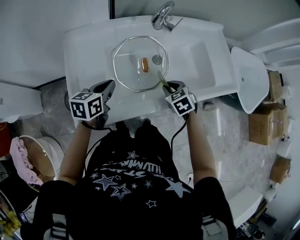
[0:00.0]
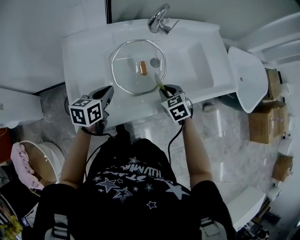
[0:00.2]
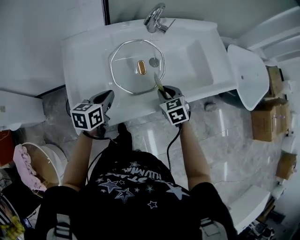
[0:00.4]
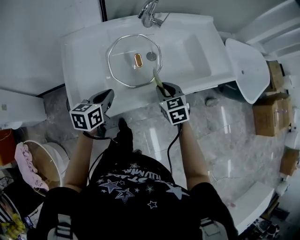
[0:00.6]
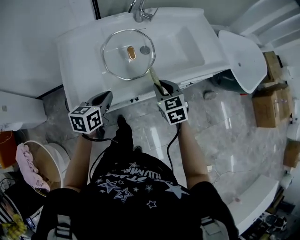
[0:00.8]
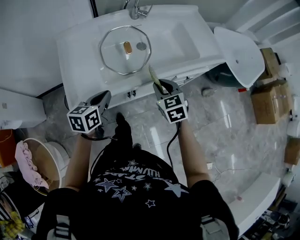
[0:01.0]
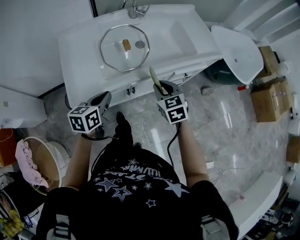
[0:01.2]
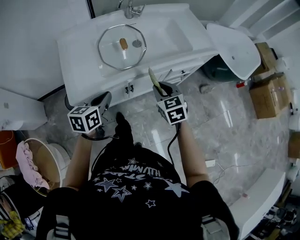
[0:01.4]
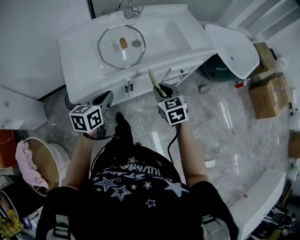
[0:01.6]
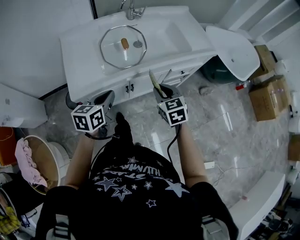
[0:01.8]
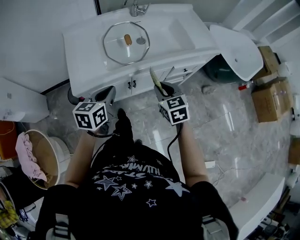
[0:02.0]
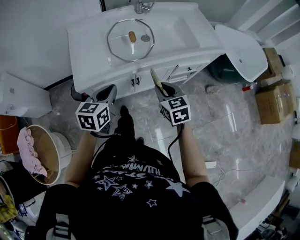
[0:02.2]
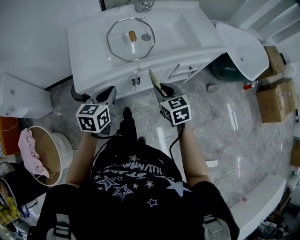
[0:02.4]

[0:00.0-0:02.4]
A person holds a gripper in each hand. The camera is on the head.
0:00.0 to 0:01.2: The right gripper is displaced backward and upward by about 20 cm, and changes its angle by approximately 30 degrees, while the left gripper heads backward and to the right, covering approximately 20 cm.
0:01.2 to 0:02.4: Both grippers travel together backward, approximately 5 cm.

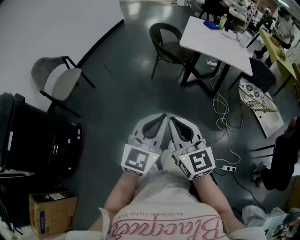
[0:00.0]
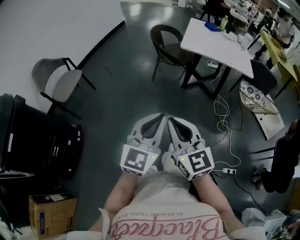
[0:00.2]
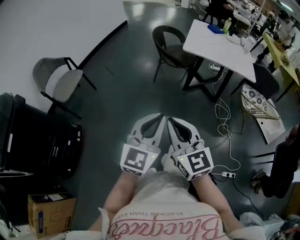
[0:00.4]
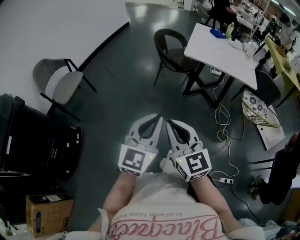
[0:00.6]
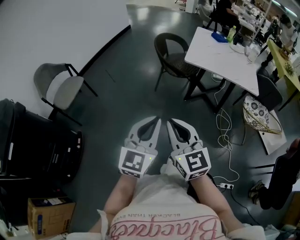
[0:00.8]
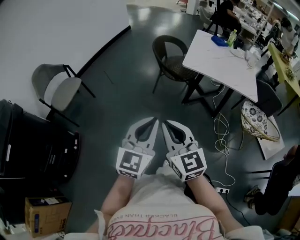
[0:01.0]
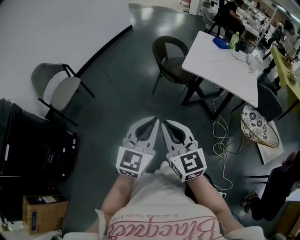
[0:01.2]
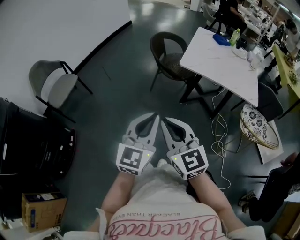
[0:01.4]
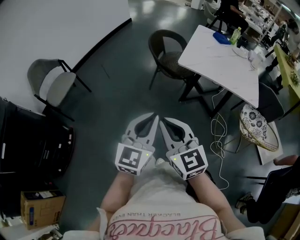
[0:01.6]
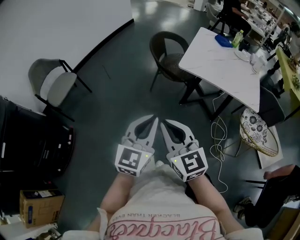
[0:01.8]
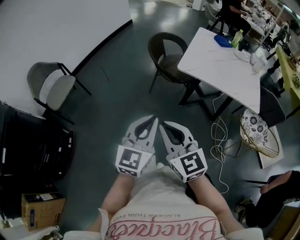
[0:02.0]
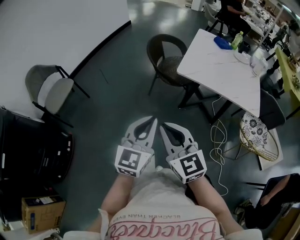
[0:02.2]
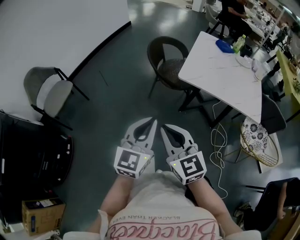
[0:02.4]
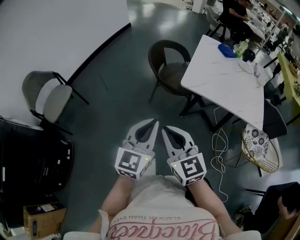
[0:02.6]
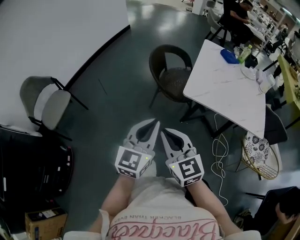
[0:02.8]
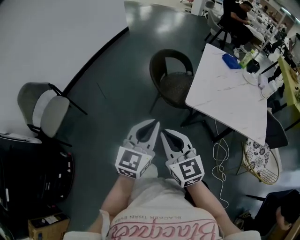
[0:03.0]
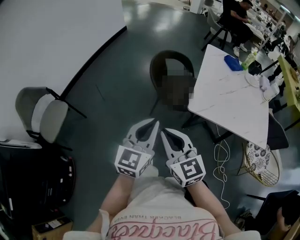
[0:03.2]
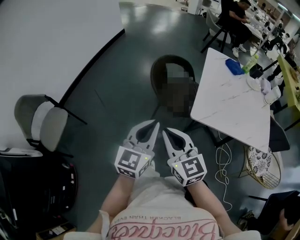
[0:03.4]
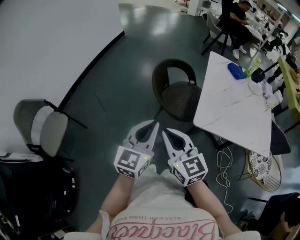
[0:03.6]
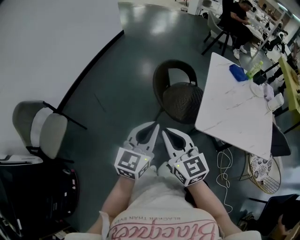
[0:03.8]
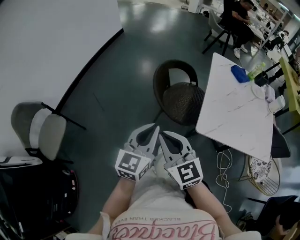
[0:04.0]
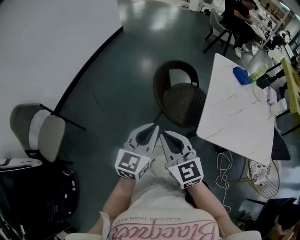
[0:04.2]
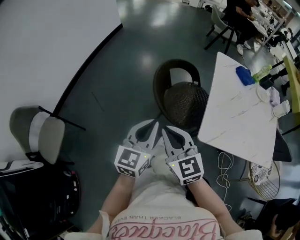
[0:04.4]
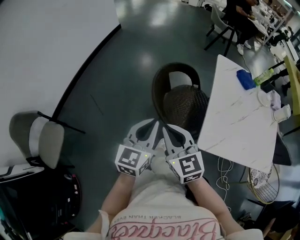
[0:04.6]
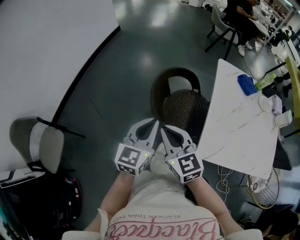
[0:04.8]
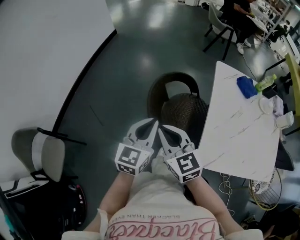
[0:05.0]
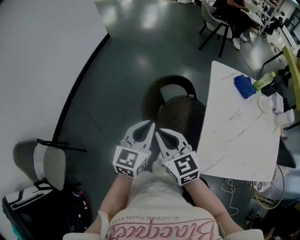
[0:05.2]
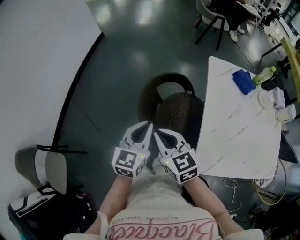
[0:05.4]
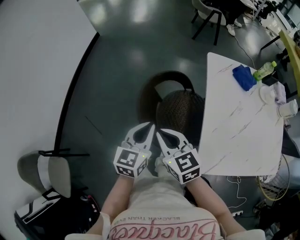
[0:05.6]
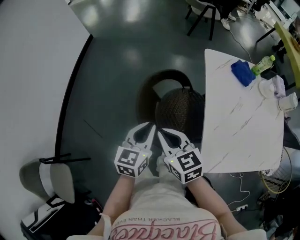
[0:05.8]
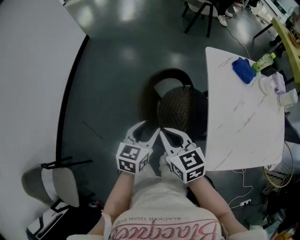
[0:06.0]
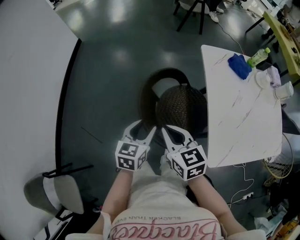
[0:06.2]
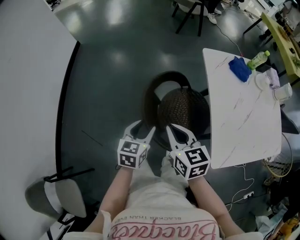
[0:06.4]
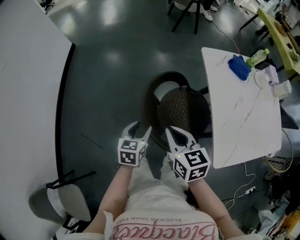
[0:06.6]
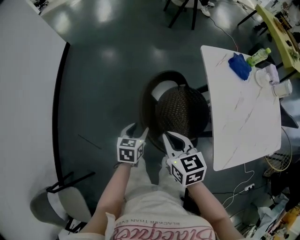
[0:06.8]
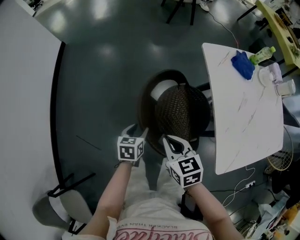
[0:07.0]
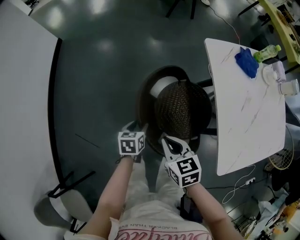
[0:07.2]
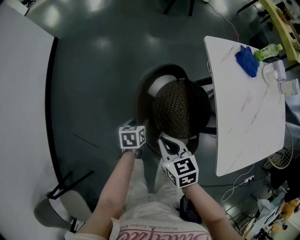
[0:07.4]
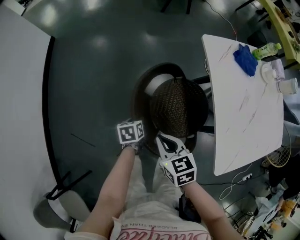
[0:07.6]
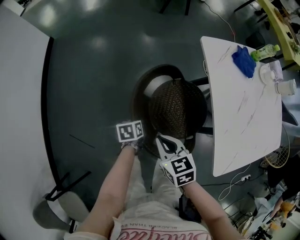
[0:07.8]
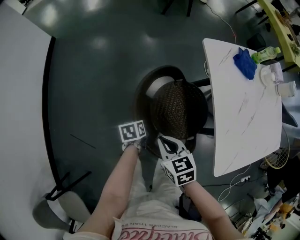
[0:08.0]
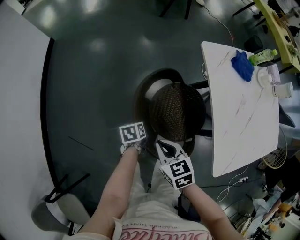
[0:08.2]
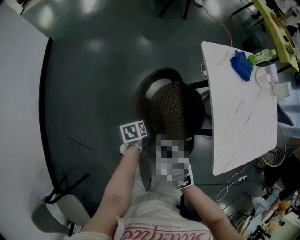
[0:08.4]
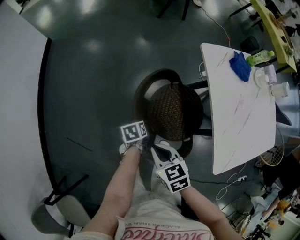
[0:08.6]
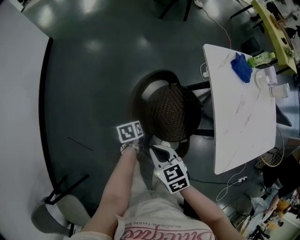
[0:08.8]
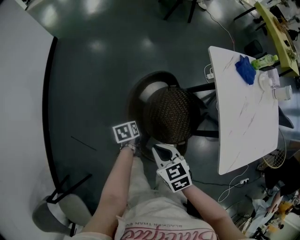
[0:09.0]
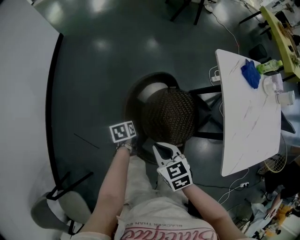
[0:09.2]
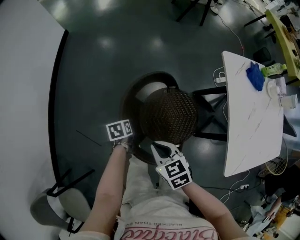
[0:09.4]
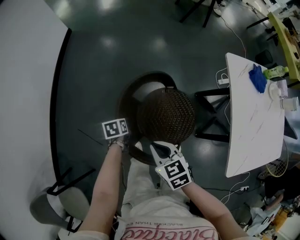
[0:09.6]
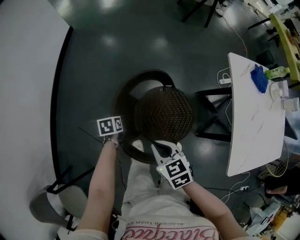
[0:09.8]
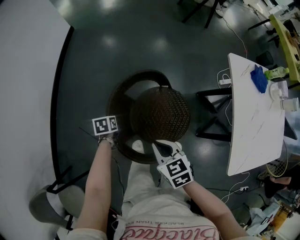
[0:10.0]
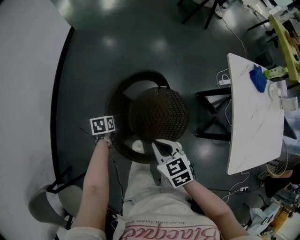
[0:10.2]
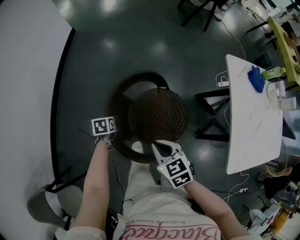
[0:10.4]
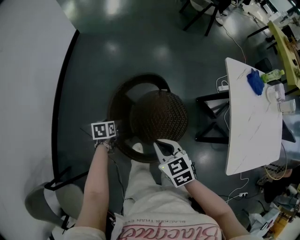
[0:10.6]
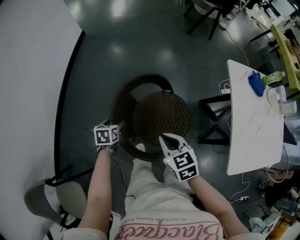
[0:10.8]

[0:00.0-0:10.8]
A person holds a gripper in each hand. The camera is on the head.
0:00.0 to 0:01.6: The two grippers go roughly 25 cm forward and to the right.
0:01.6 to 0:03.0: Both grippers move forward, approximately 30 cm.
0:03.0 to 0:04.6: The two grippers go about 30 cm forward.
0:04.6 to 0:06.2: The left gripper travels forward and downward by about 25 cm, turns by approximately 30 degrees, and opens, while the right gripper heads forward, covering approximately 20 cm, and swivels roughly 30 degrees.
0:06.2 to 0:07.8: The left gripper travels downward and forward by approximately 25 cm, and swivels approximately 40 degrees. The right gripper moves downward and forward, about 15 cm.
0:07.8 to 0:09.2: Both grippers travel together to the left, some 10 cm.
0:09.2 to 0:10.8: The right gripper heads to the left, covering approximately 5 cm. Meanwhile the left gripper heads to the left and upward, covering roughly 15 cm, and opens up.

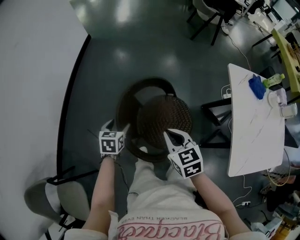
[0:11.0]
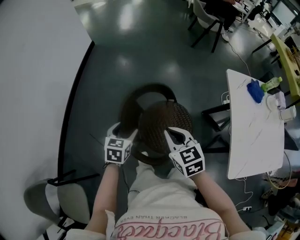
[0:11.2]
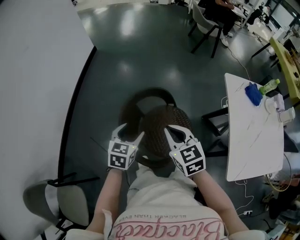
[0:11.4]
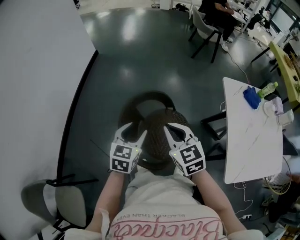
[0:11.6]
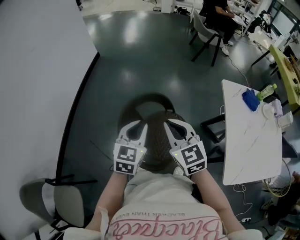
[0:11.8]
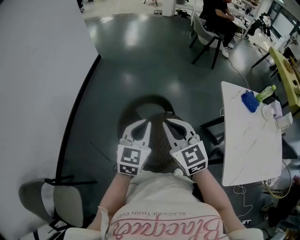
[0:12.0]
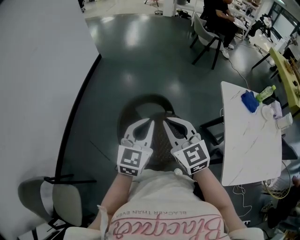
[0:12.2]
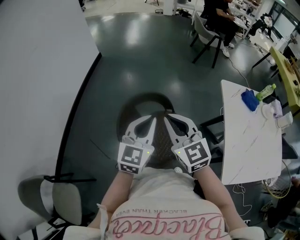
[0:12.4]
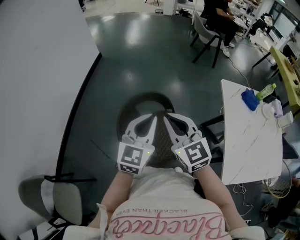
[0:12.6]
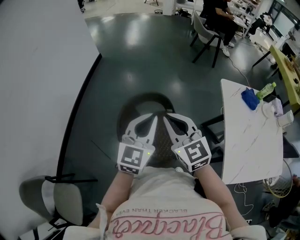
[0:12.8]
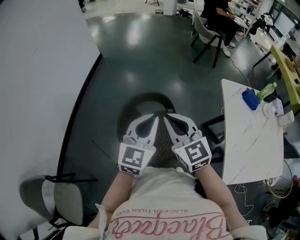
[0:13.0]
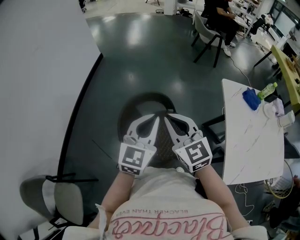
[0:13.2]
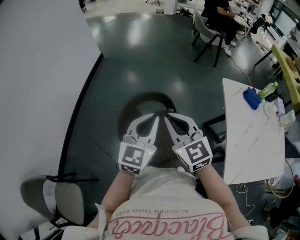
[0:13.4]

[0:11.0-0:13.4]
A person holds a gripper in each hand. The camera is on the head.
0:11.0 to 0:12.2: The left gripper travels upward and to the right by approximately 30 cm, tilts its fingers about 40 degrees upward, and closes up; the right gripper travels upward by about 15 cm, and swivels about 30 degrees.
0:12.2 to 0:13.4: The grippers make only small movements.

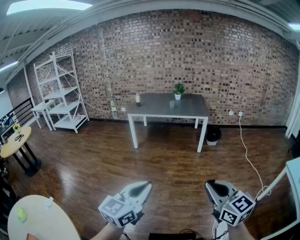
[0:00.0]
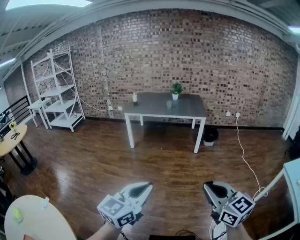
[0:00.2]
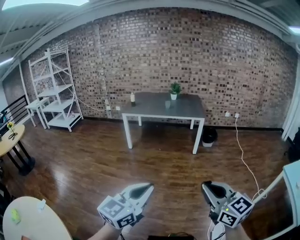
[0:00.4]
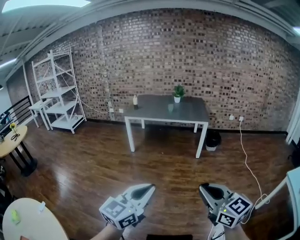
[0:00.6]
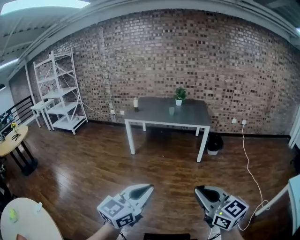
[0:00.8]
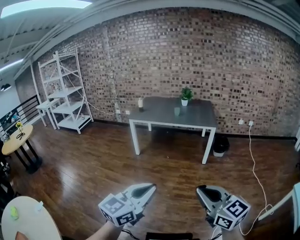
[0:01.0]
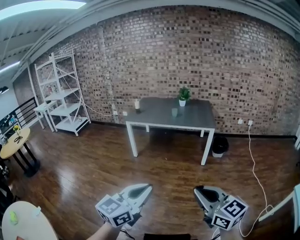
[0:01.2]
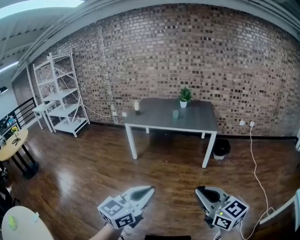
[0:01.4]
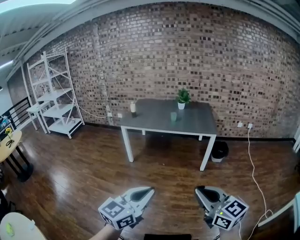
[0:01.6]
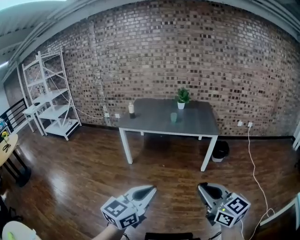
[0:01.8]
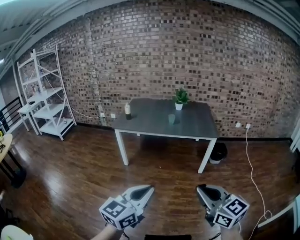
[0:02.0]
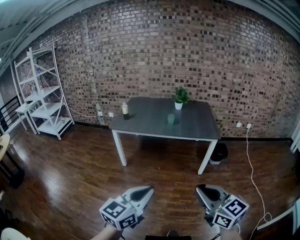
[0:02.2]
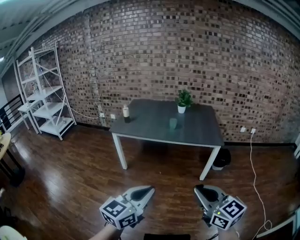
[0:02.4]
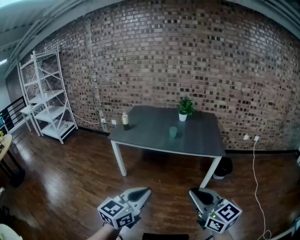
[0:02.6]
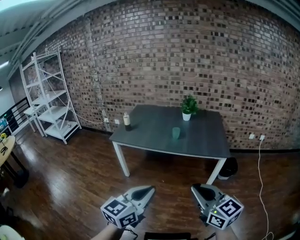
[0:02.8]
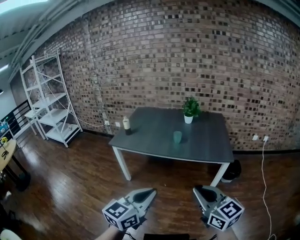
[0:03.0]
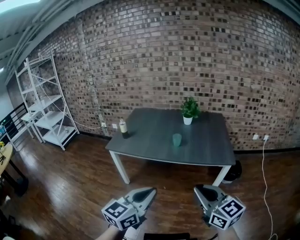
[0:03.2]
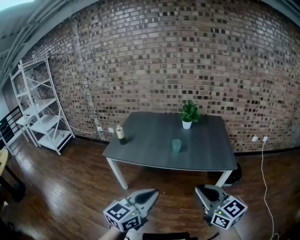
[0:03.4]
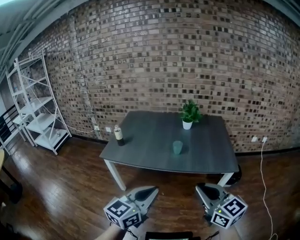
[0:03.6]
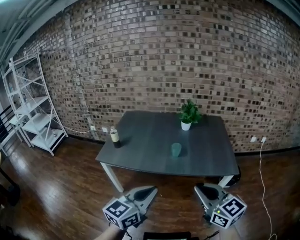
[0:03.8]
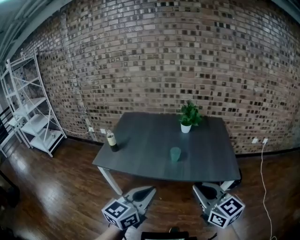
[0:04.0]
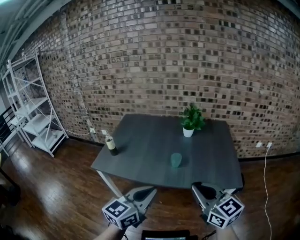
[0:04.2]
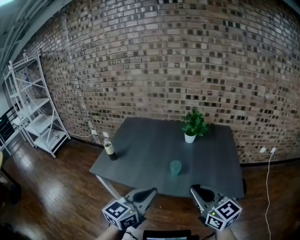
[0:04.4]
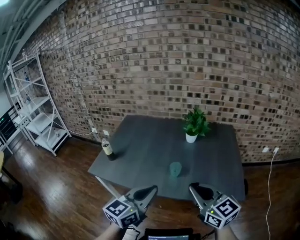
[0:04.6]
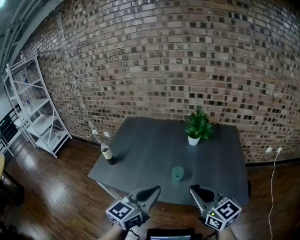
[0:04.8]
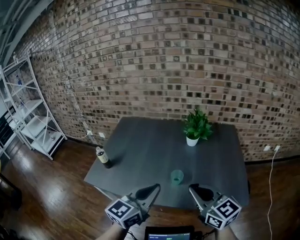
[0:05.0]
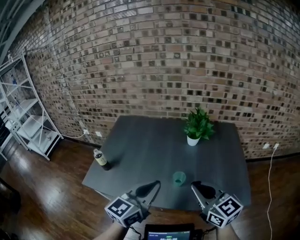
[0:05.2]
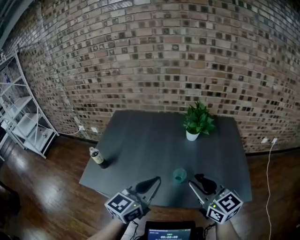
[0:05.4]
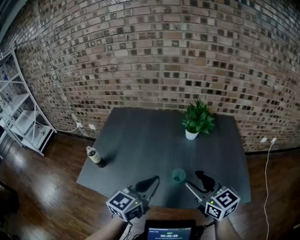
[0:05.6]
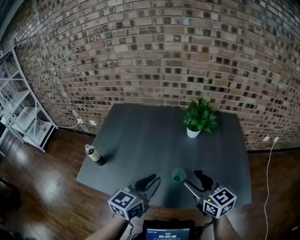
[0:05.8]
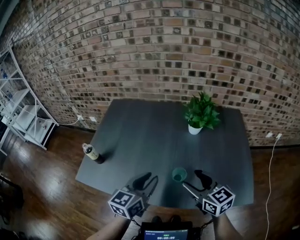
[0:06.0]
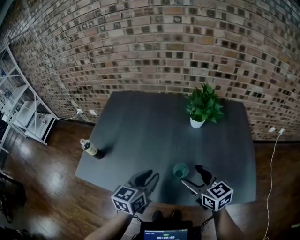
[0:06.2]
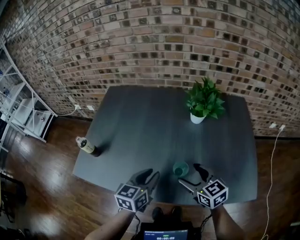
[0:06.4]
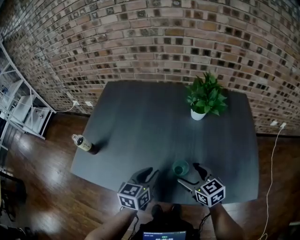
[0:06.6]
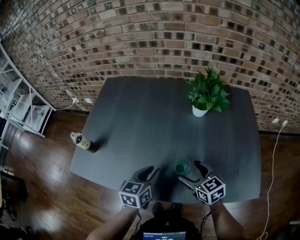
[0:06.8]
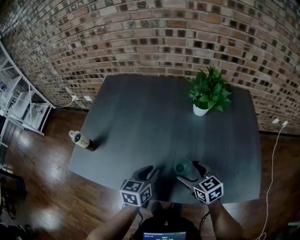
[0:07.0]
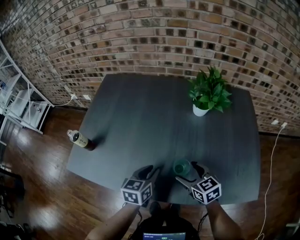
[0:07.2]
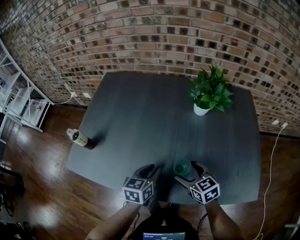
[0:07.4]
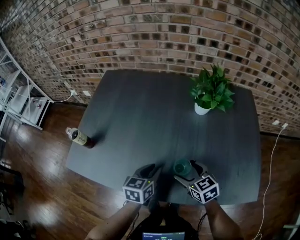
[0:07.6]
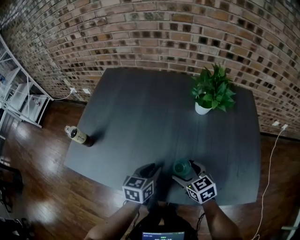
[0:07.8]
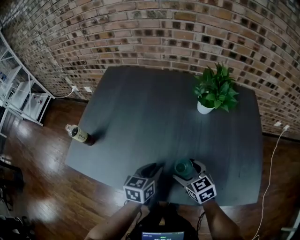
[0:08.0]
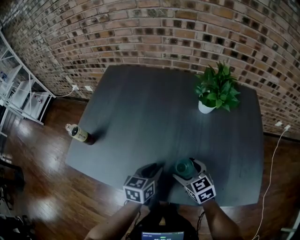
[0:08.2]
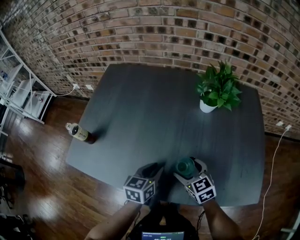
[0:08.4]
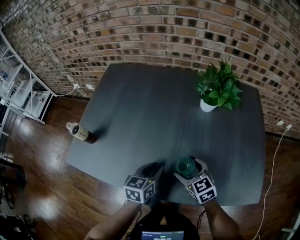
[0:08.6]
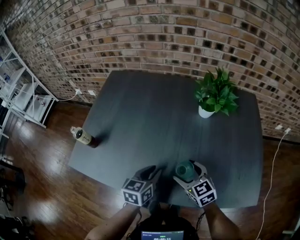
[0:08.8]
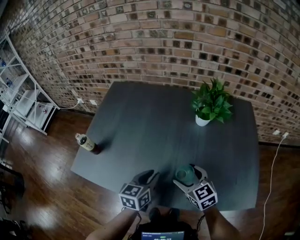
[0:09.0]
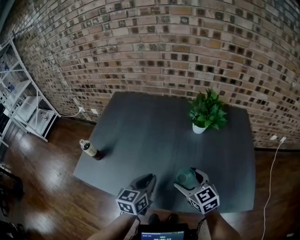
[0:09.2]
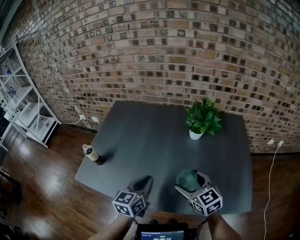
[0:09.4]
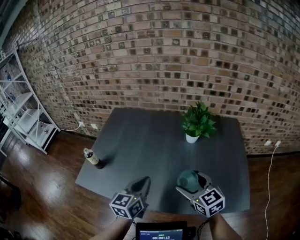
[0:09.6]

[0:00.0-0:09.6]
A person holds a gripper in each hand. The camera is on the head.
0:00.0 to 0:01.6: The two grippers go some 35 cm forward.
0:01.6 to 0:03.2: The pair of grippers is taken forward, roughly 50 cm.
0:03.2 to 0:04.8: Both grippers travel together forward, about 40 cm.
0:04.8 to 0:06.4: The left gripper heads forward and downward, covering some 25 cm, changes its angle by roughly 30 degrees, and opens up. The right gripper is displaced downward and forward by roughly 25 cm, changes its angle by about 20 degrees, and opens its fingers.
0:06.4 to 0:08.0: The grippers both shift downward by about 10 cm.
0:08.0 to 0:09.6: Both grippers move upward, some 20 cm. The left gripper closes.
